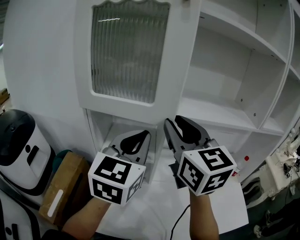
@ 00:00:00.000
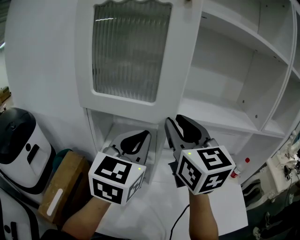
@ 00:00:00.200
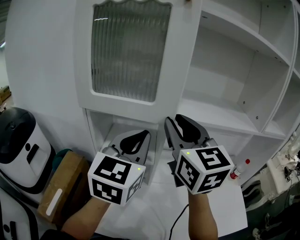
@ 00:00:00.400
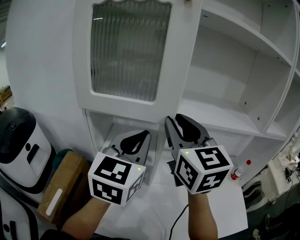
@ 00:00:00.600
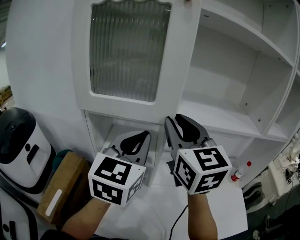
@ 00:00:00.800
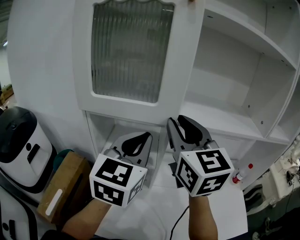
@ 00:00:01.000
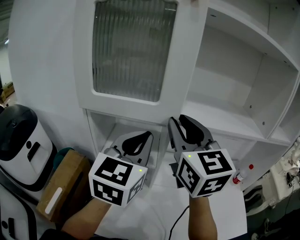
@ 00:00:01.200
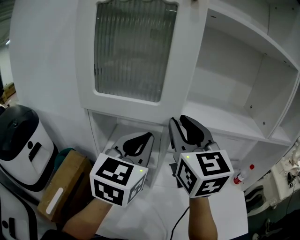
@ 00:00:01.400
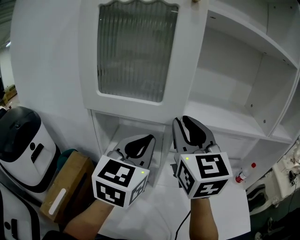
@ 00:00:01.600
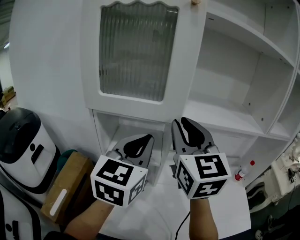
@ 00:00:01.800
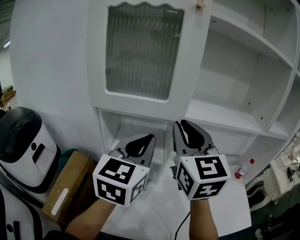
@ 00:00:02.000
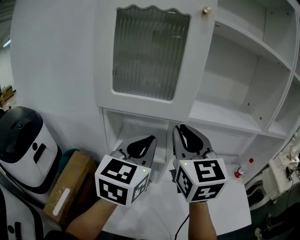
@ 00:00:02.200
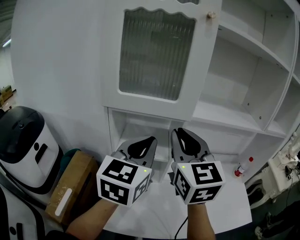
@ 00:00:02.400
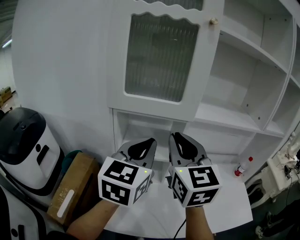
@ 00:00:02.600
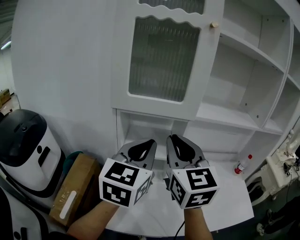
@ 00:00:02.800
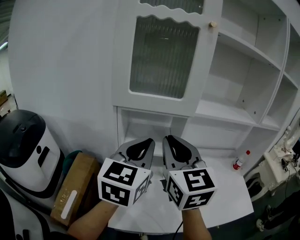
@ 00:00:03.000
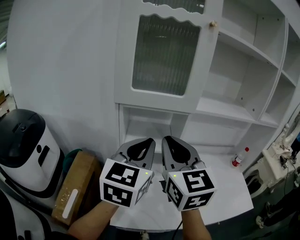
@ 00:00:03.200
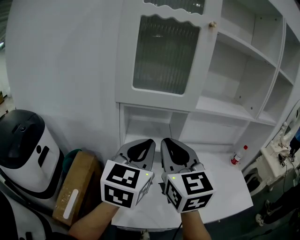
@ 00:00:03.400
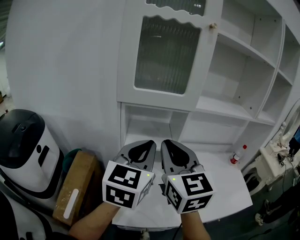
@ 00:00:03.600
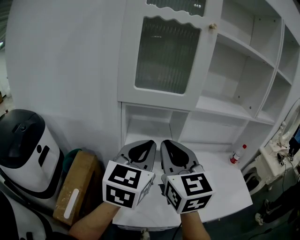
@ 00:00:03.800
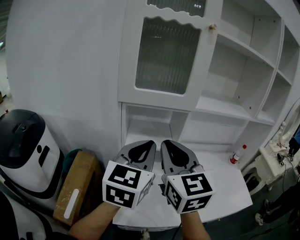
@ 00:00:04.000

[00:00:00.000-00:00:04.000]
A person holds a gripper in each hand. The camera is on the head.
00:00:00.000 to 00:00:01.400: The grippers stay close to where they were, moving slightly.
00:00:01.400 to 00:00:02.600: The grippers both shift backward and to the left by roughly 10 cm.
00:00:02.600 to 00:00:04.000: The right gripper moves backward and to the left, some 10 cm; the left gripper heads backward, covering about 5 cm.

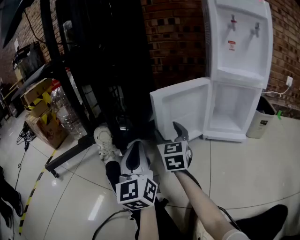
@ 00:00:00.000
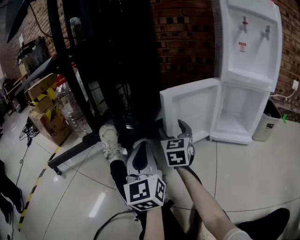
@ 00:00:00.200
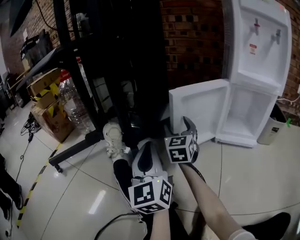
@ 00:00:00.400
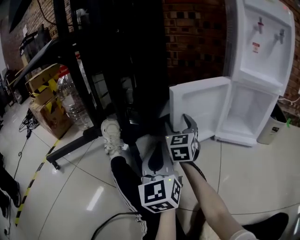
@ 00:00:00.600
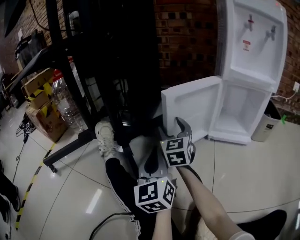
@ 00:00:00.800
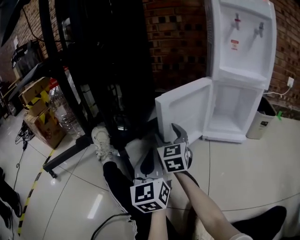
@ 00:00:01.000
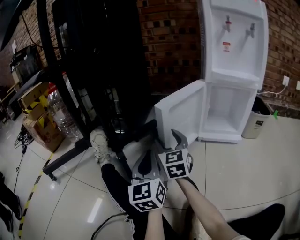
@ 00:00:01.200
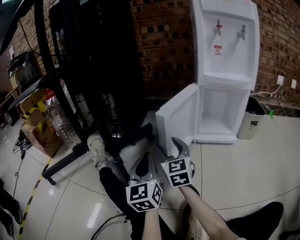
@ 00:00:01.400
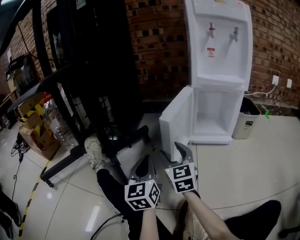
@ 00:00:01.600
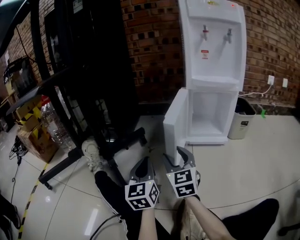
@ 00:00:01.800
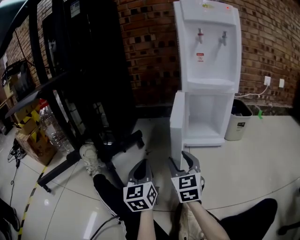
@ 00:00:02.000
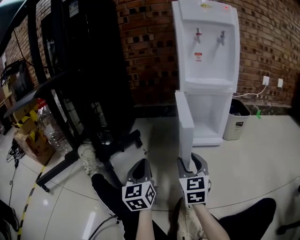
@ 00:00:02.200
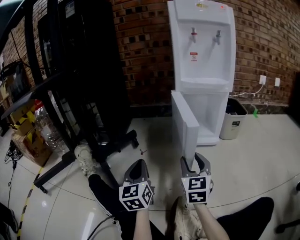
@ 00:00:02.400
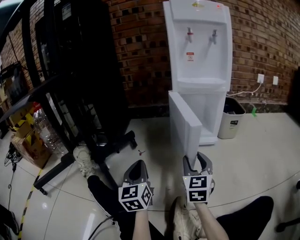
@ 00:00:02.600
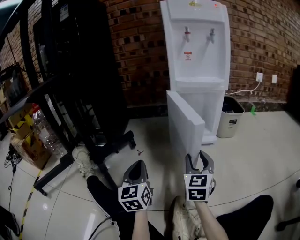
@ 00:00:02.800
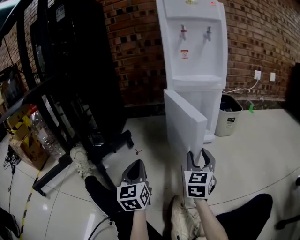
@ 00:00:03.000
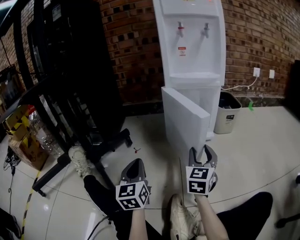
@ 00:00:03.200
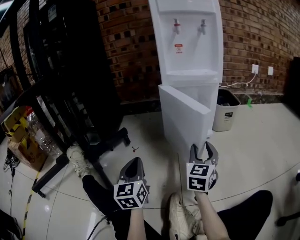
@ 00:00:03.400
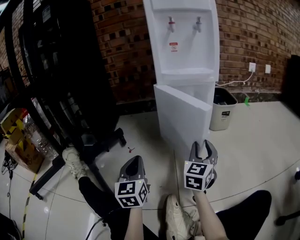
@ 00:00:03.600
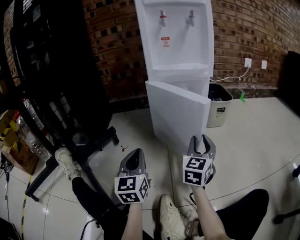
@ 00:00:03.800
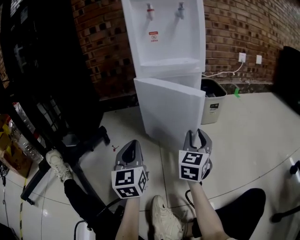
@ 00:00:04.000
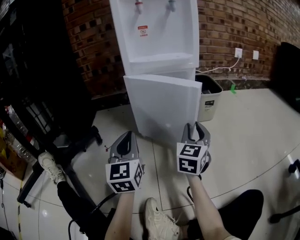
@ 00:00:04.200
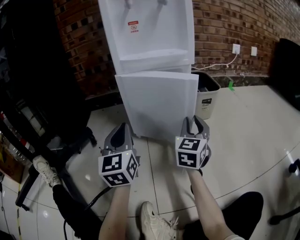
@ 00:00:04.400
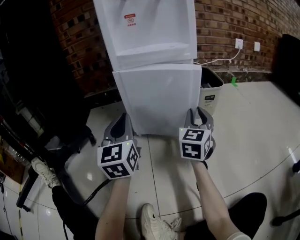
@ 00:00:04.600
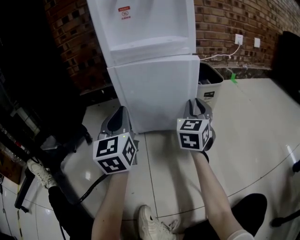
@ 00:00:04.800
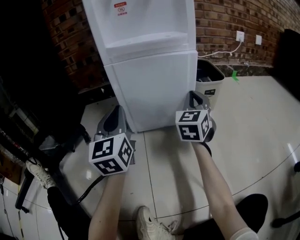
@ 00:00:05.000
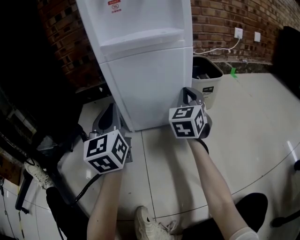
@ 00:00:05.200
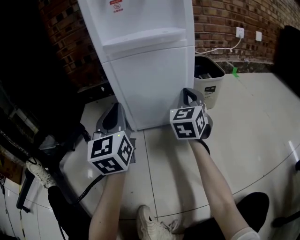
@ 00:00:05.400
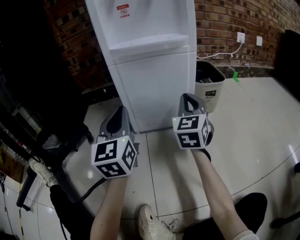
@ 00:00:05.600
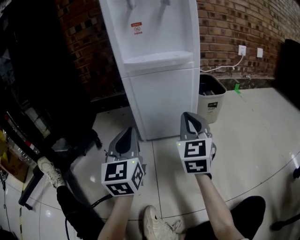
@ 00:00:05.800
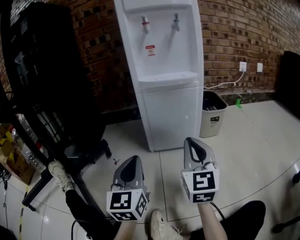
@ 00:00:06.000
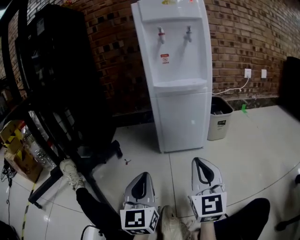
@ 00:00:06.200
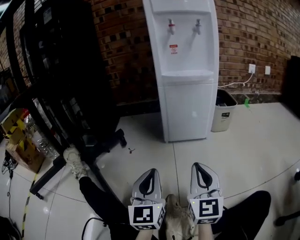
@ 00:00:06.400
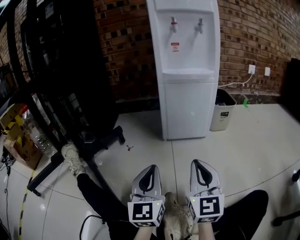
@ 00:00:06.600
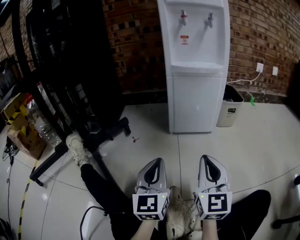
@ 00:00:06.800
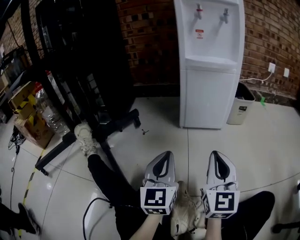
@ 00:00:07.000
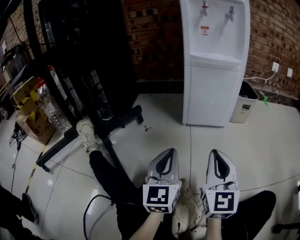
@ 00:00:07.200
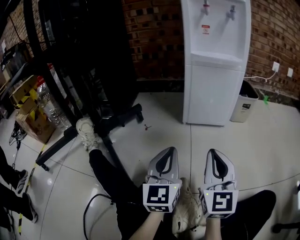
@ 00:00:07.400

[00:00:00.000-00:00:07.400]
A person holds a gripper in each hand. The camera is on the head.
00:00:00.000 to 00:00:01.400: The left gripper shifts about 5 cm to the right, while the right gripper shifts by approximately 5 cm.
00:00:01.400 to 00:00:03.000: The left gripper goes roughly 5 cm to the right. Meanwhile the right gripper is displaced to the right by about 25 cm, and turns by some 30 degrees.
00:00:03.000 to 00:00:04.400: Both grippers travel together forward and to the right, approximately 20 cm.
00:00:04.400 to 00:00:06.000: The right gripper heads backward, upward and to the left, covering approximately 15 cm, and swivels about 20 degrees. Meanwhile the left gripper moves backward, roughly 10 cm.
00:00:06.000 to 00:00:07.400: The right gripper goes approximately 15 cm backward and to the left. The left gripper shifts about 10 cm backward.

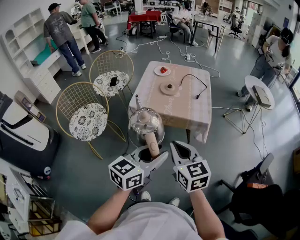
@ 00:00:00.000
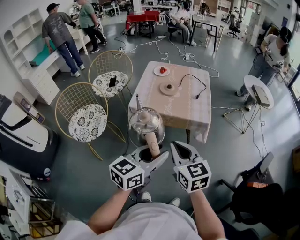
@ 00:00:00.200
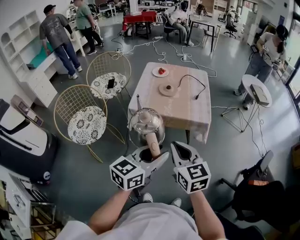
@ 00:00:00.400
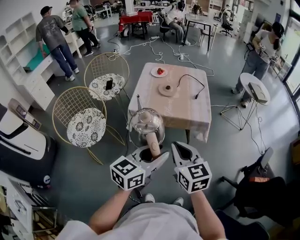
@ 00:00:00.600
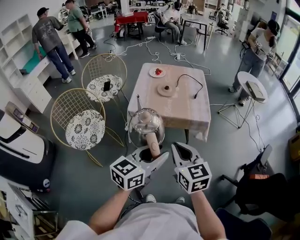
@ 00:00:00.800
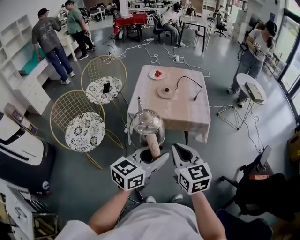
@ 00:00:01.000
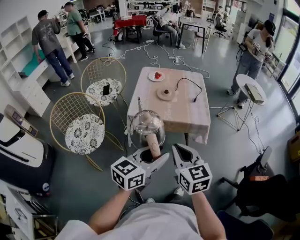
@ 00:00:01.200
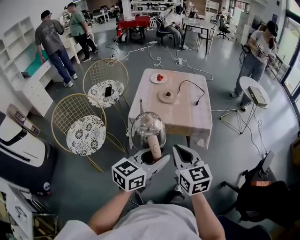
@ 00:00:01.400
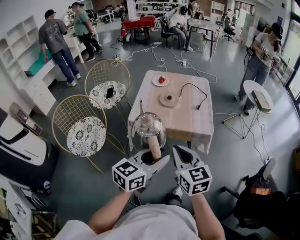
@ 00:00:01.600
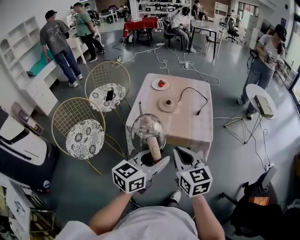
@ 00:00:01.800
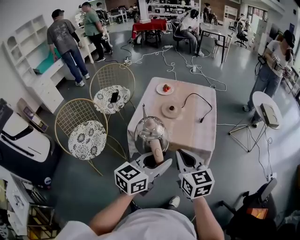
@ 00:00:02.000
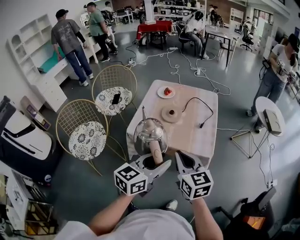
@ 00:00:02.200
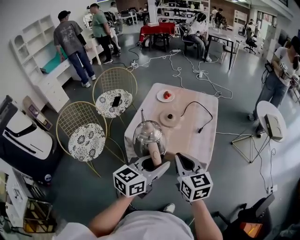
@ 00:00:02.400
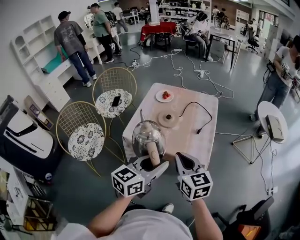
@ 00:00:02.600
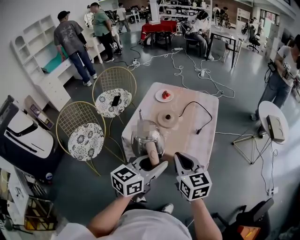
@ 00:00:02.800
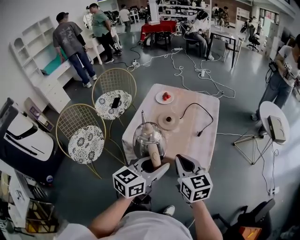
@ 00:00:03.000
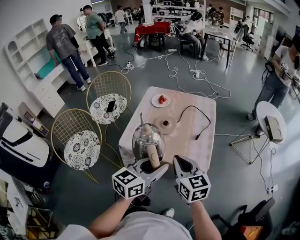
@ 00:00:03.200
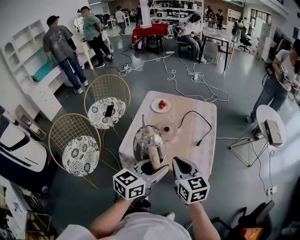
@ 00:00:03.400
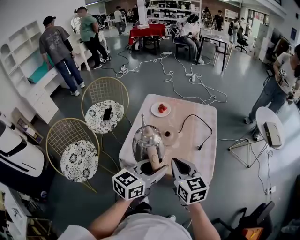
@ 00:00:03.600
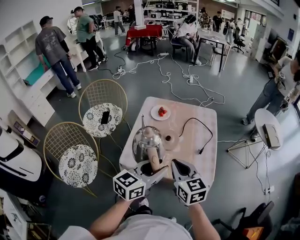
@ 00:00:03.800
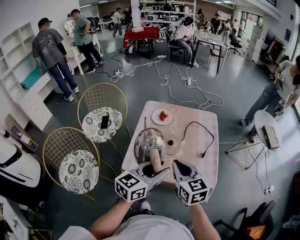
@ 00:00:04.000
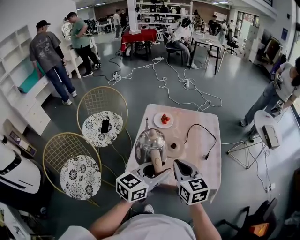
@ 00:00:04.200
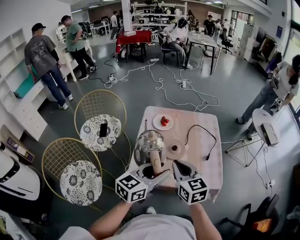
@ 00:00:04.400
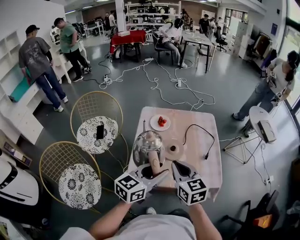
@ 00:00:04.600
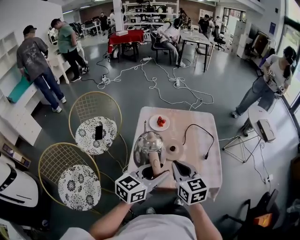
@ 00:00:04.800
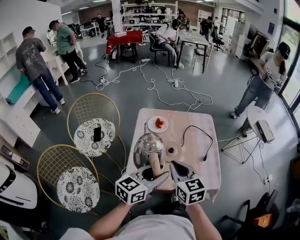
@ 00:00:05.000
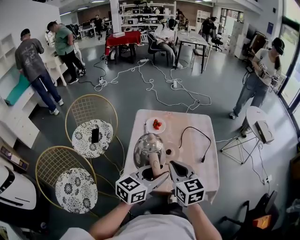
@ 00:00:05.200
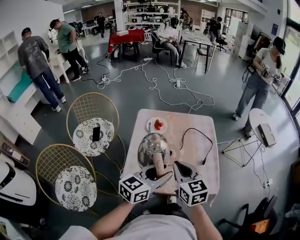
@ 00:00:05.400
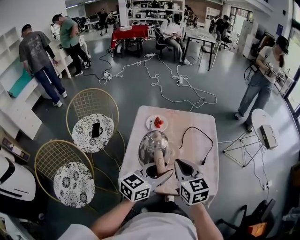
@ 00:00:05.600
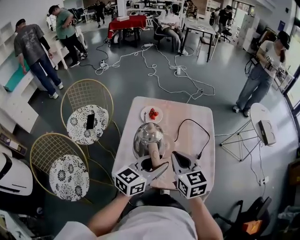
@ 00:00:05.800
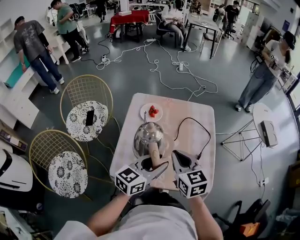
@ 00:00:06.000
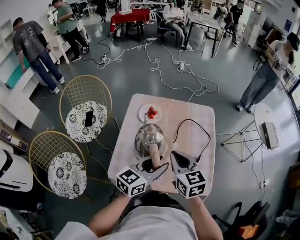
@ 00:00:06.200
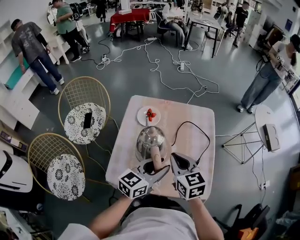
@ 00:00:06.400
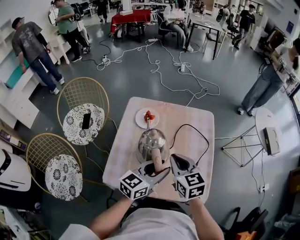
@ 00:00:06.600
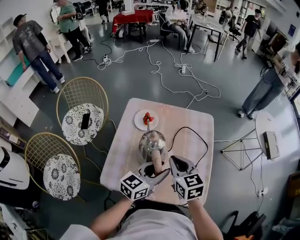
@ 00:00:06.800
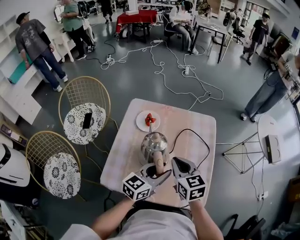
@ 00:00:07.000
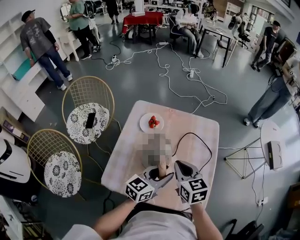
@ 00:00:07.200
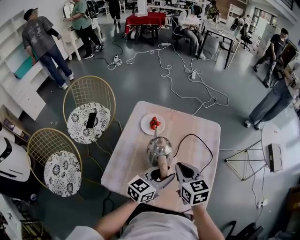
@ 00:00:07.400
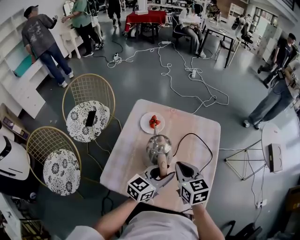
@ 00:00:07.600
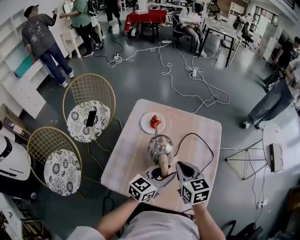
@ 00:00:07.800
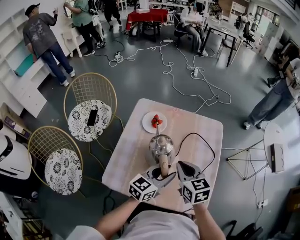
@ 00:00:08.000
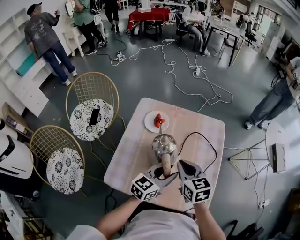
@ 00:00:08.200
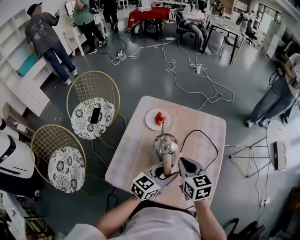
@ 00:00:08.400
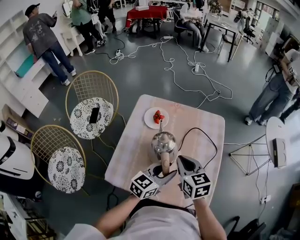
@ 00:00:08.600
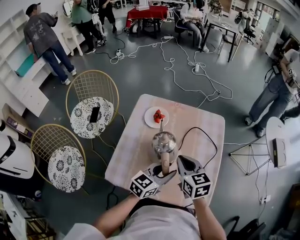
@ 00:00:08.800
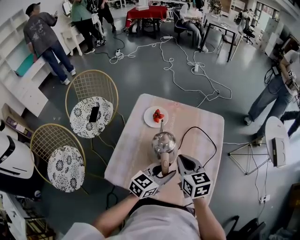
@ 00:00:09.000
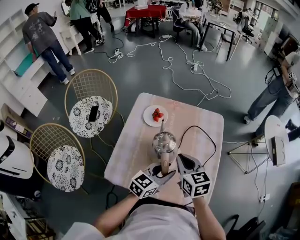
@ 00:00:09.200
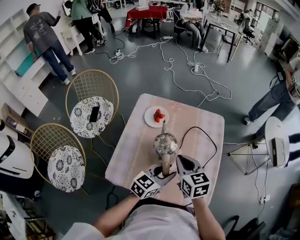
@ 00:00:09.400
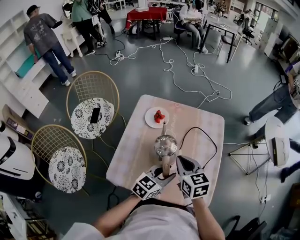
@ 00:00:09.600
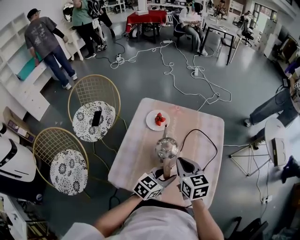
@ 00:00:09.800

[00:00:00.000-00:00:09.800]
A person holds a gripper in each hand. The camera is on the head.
00:00:00.000 to 00:00:01.400: The right gripper changes place by some 5 cm, while the left gripper ends up approximately 5 cm from where it was.
00:00:01.400 to 00:00:02.800: The two grippers go some 20 cm forward and to the right.
00:00:02.800 to 00:00:04.200: The right gripper is displaced to the left and forward by roughly 20 cm. Meanwhile the left gripper travels forward and to the left by approximately 20 cm.
00:00:04.200 to 00:00:05.600: Both grippers travel together forward, about 5 cm.
00:00:05.600 to 00:00:07.000: The grippers both shift forward, downward and to the right by roughly 15 cm.
00:00:07.000 to 00:00:08.400: There are only small adjustments of the grippers.
00:00:08.400 to 00:00:09.800: The grippers stay close to where they were, moving slightly.

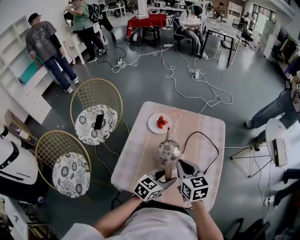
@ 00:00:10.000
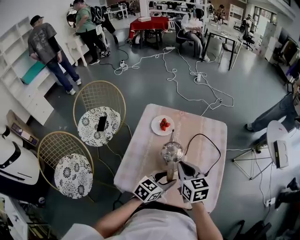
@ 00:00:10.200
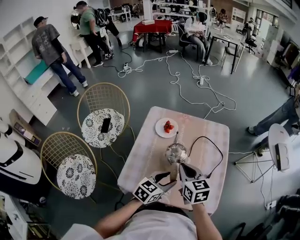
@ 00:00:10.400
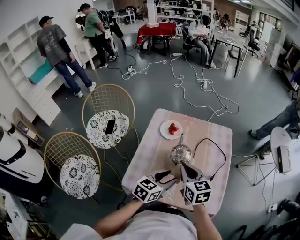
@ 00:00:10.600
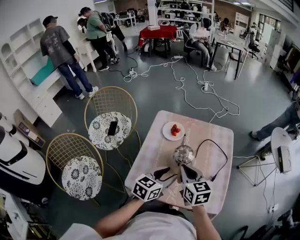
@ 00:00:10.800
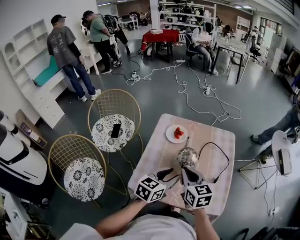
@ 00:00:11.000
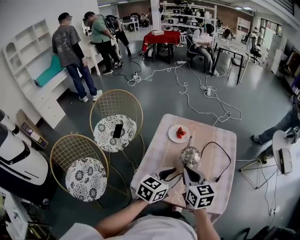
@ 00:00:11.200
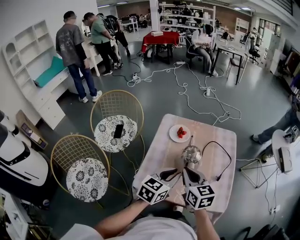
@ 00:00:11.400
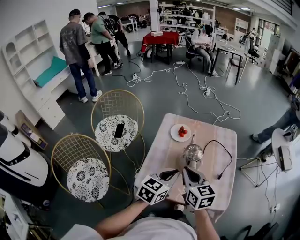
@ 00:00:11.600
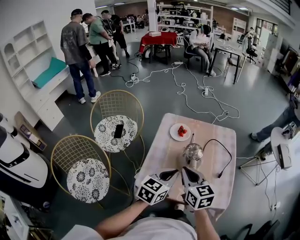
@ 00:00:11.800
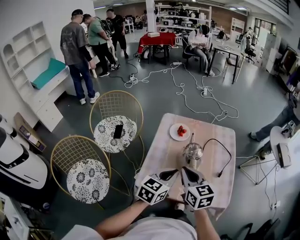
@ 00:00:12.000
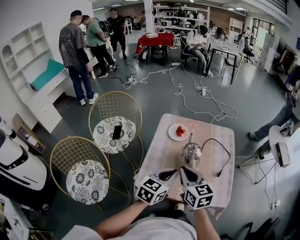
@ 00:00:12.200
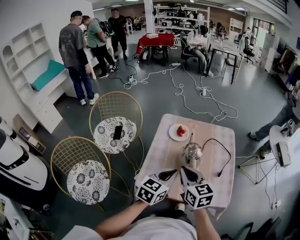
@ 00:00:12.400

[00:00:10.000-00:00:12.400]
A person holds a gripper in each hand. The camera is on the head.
00:00:10.000 to 00:00:11.200: The right gripper shifts roughly 10 cm to the left, backward and upward. The left gripper travels upward and to the left by about 15 cm.
00:00:11.200 to 00:00:12.400: The left gripper closes its fingers. Meanwhile the right gripper moves about 5 cm.
